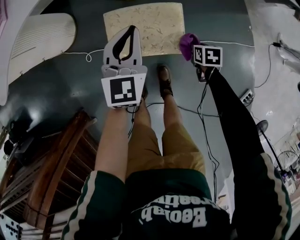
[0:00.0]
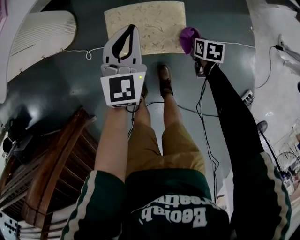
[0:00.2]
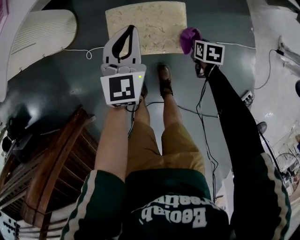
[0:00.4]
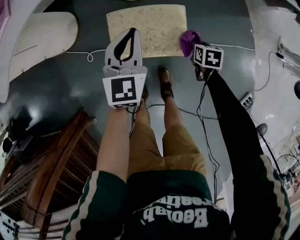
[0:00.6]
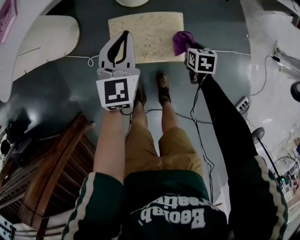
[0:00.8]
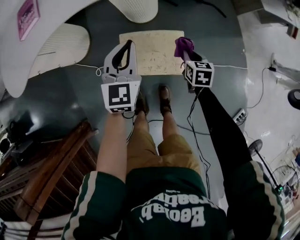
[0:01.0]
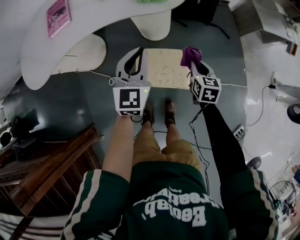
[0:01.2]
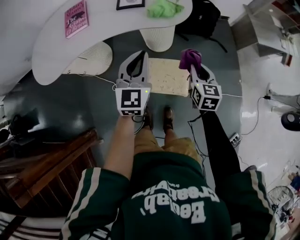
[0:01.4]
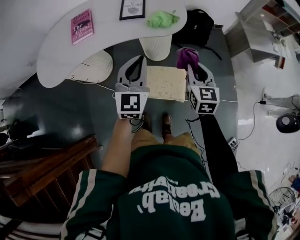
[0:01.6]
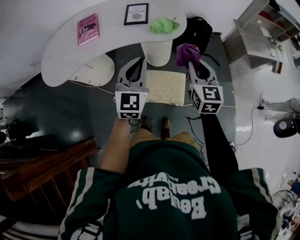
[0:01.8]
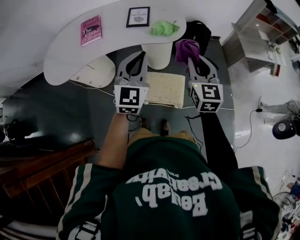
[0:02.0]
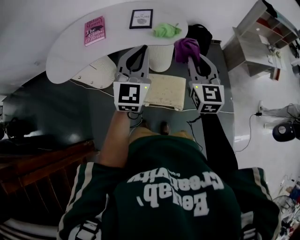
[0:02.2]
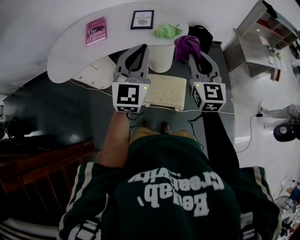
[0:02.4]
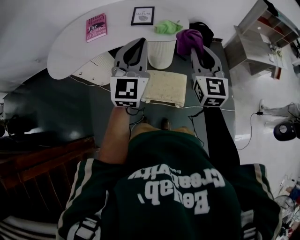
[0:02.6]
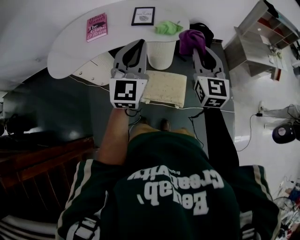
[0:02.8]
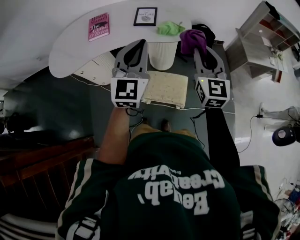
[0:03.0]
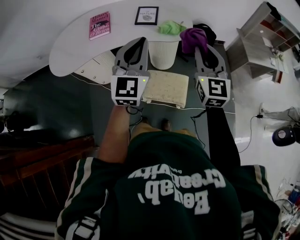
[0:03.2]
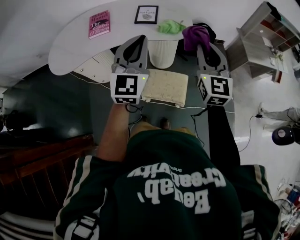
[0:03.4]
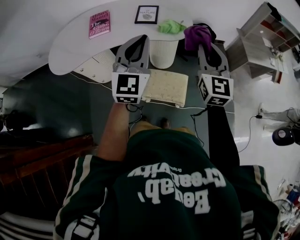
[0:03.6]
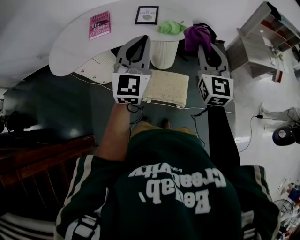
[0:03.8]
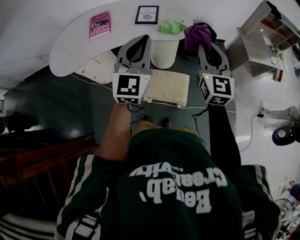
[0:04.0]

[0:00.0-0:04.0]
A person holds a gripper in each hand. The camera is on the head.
0:00.0 to 0:01.4: The left gripper moves upward, approximately 25 cm; the right gripper is displaced upward by some 35 cm, and tilts its fingers approximately 40 degrees upward.
0:01.4 to 0:02.6: The grippers both shift upward by some 20 cm. The right gripper swivels some 30 degrees.
0:02.6 to 0:04.0: The grippers stay close to where they were, moving slightly.

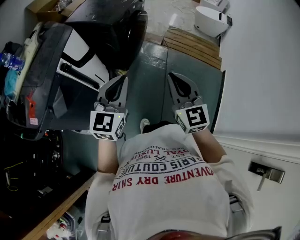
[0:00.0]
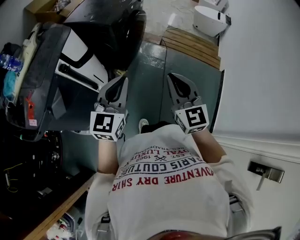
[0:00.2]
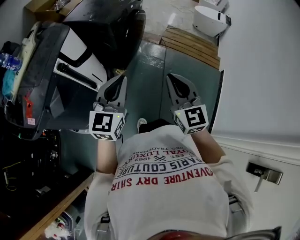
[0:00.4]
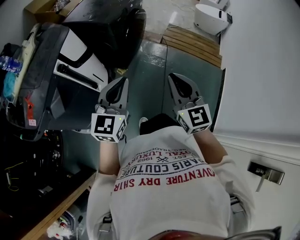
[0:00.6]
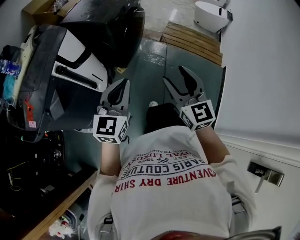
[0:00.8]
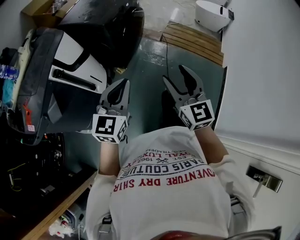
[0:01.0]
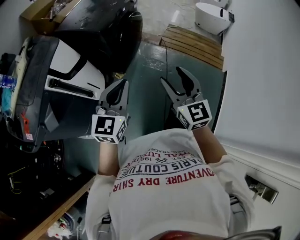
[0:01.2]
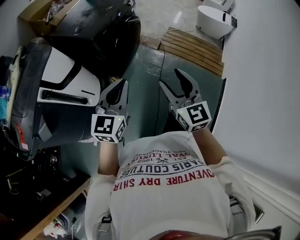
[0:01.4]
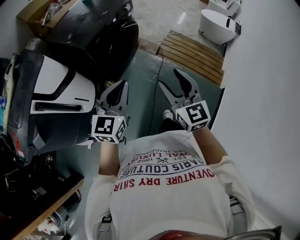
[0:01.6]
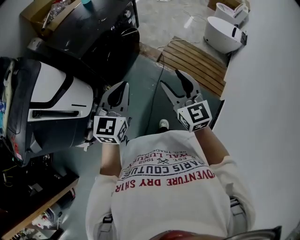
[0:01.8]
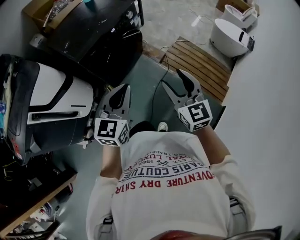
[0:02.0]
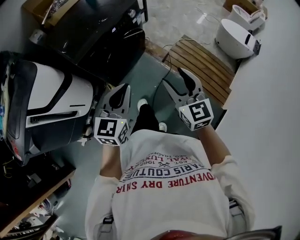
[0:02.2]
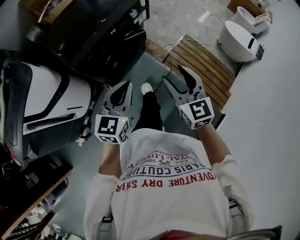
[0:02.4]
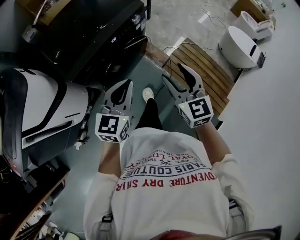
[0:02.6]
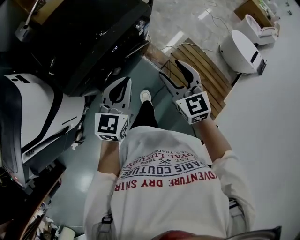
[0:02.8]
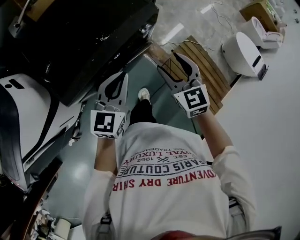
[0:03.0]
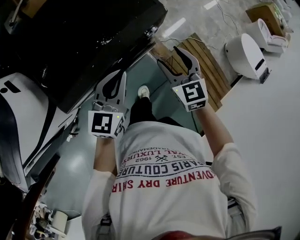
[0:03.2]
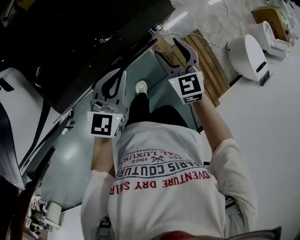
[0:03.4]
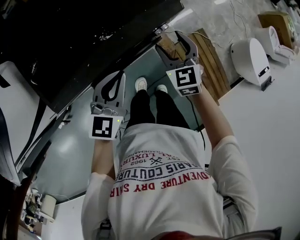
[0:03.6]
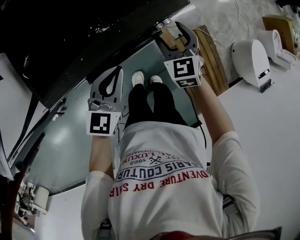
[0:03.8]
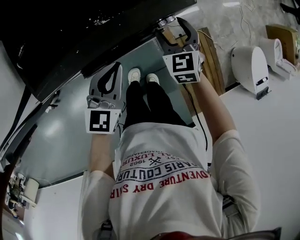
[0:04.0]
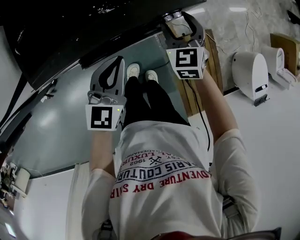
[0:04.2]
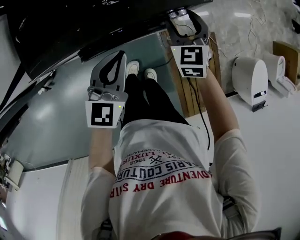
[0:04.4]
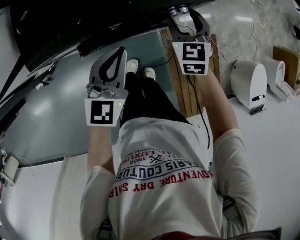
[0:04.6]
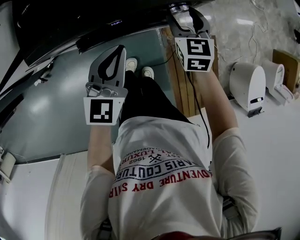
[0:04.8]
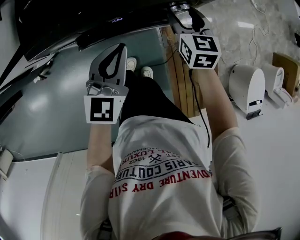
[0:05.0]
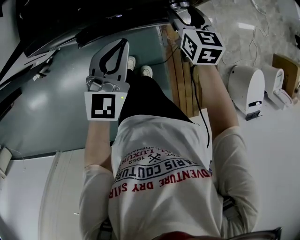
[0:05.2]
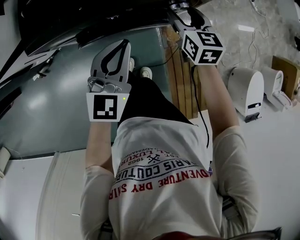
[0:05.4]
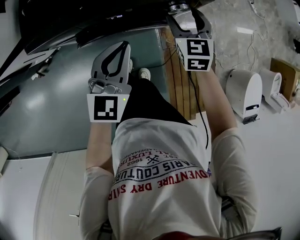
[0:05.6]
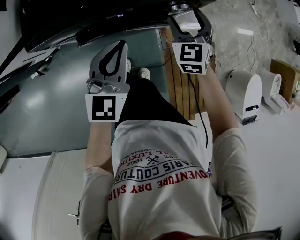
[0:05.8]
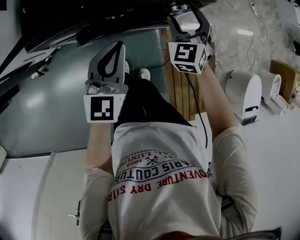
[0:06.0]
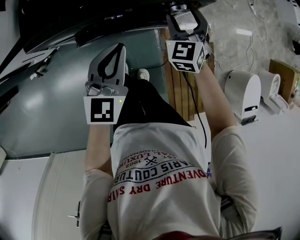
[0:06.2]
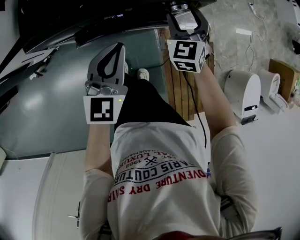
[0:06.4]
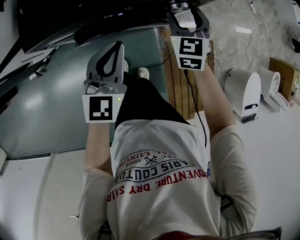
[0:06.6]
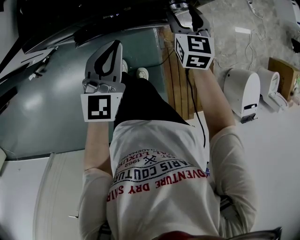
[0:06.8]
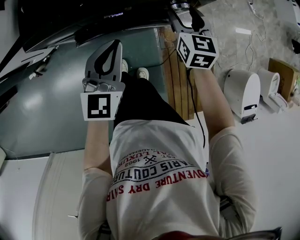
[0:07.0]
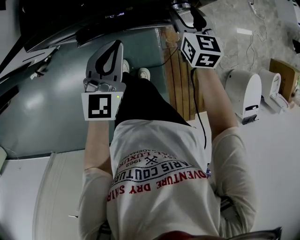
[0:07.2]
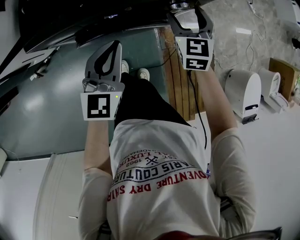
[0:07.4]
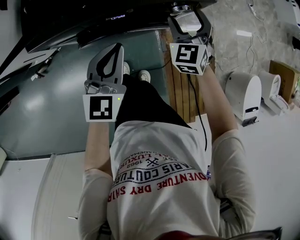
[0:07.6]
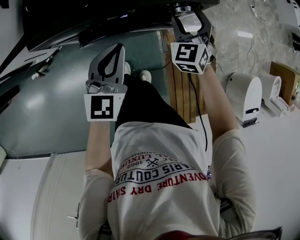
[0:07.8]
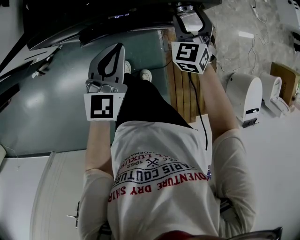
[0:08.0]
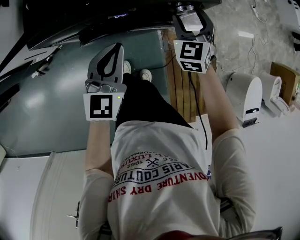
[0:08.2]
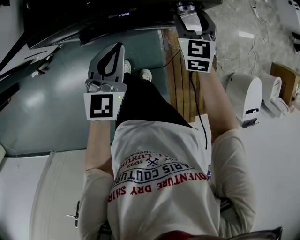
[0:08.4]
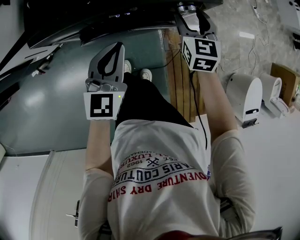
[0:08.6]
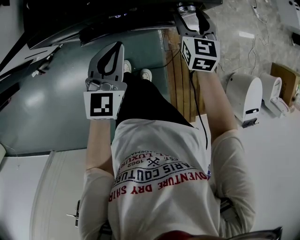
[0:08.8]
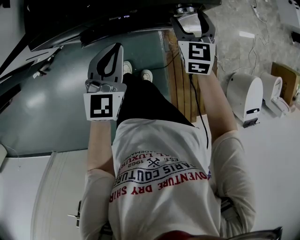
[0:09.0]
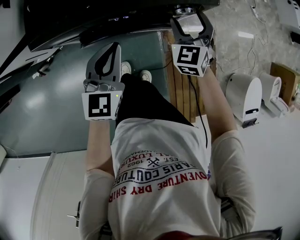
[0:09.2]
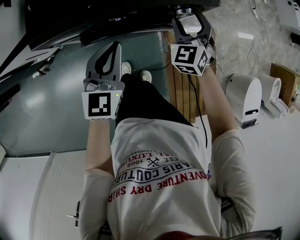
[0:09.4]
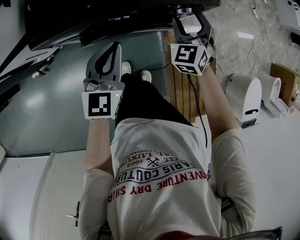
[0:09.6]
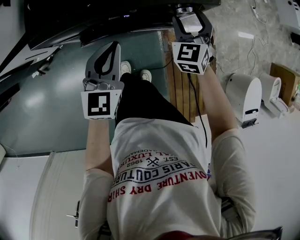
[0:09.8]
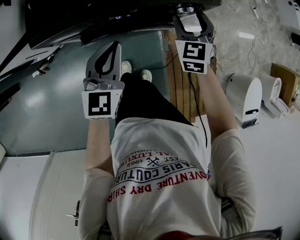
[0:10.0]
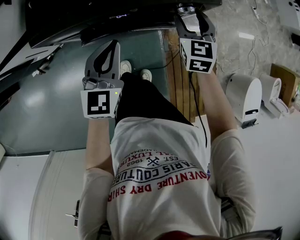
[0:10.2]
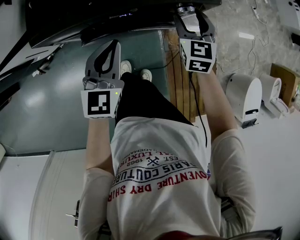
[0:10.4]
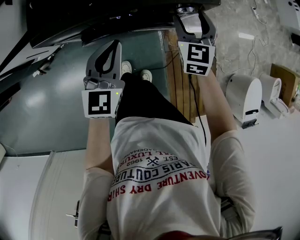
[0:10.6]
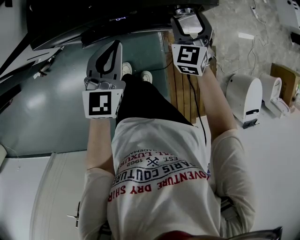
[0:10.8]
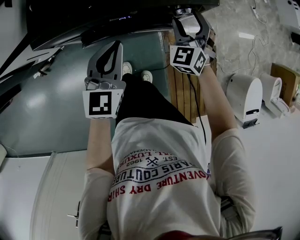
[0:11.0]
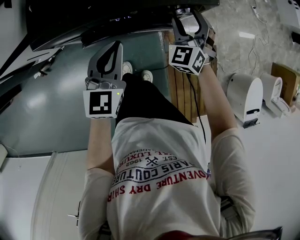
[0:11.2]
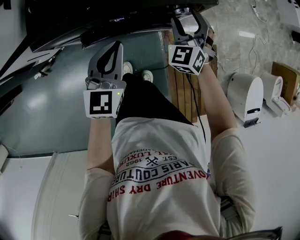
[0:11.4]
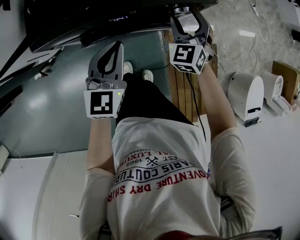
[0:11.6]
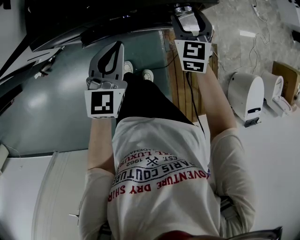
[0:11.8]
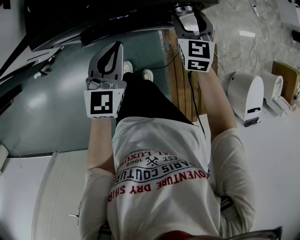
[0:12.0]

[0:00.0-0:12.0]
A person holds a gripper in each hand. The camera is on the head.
0:00.0 to 0:01.6: Both grippers travel together forward and to the right, approximately 30 cm. The right gripper opens up.
0:01.6 to 0:03.0: The pair of grippers is taken forward, approximately 50 cm. The right gripper changes its angle by about 30 degrees.
0:03.0 to 0:04.4: The right gripper travels forward and downward by some 25 cm, and swivels about 20 degrees. The left gripper travels downward by about 10 cm, and turns by approximately 30 degrees.

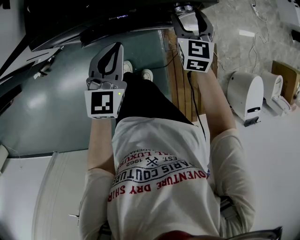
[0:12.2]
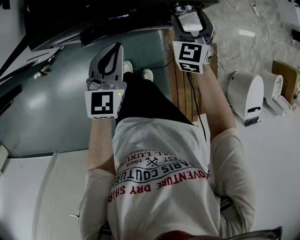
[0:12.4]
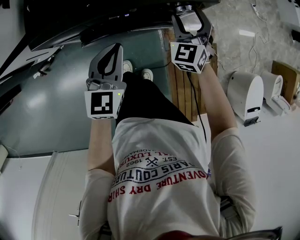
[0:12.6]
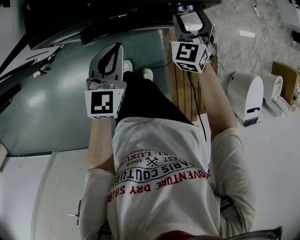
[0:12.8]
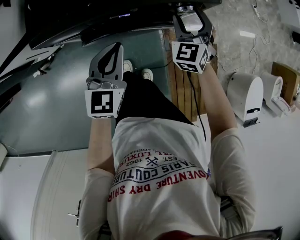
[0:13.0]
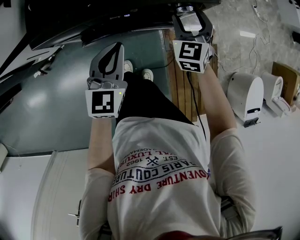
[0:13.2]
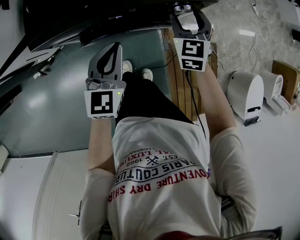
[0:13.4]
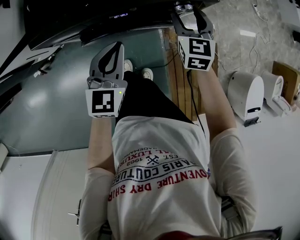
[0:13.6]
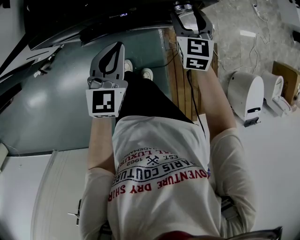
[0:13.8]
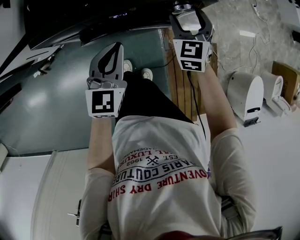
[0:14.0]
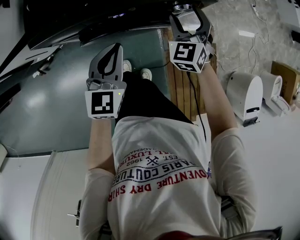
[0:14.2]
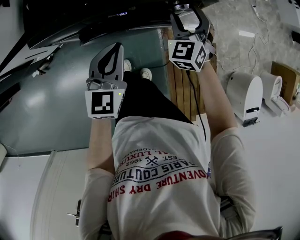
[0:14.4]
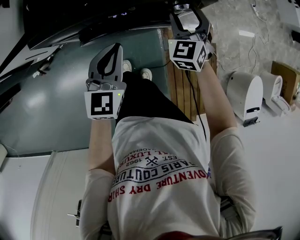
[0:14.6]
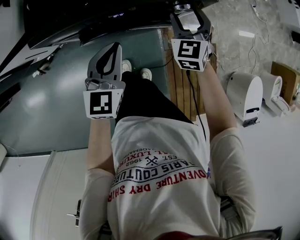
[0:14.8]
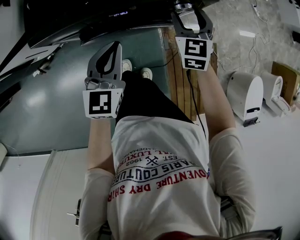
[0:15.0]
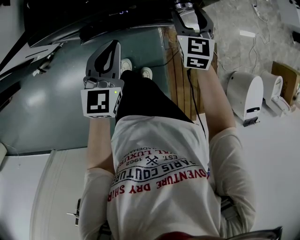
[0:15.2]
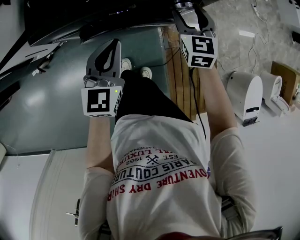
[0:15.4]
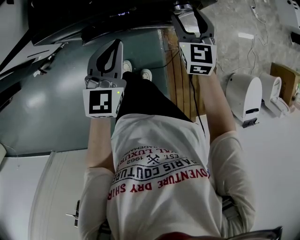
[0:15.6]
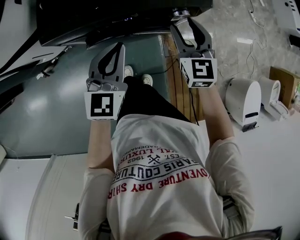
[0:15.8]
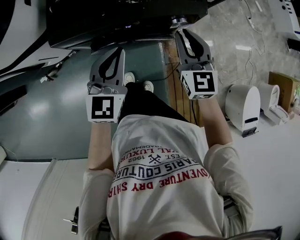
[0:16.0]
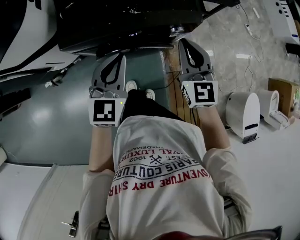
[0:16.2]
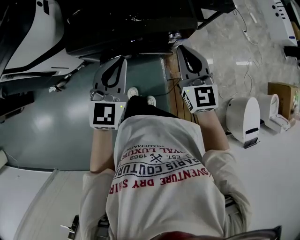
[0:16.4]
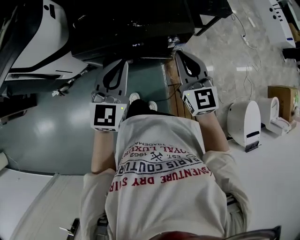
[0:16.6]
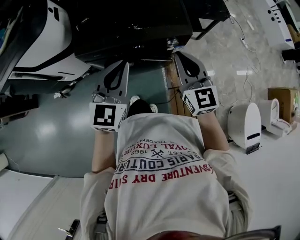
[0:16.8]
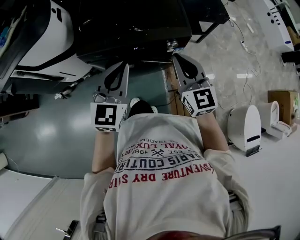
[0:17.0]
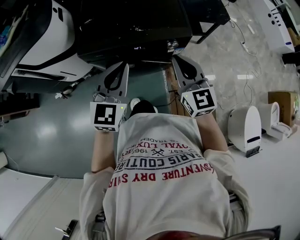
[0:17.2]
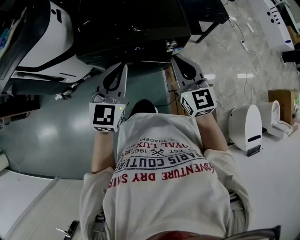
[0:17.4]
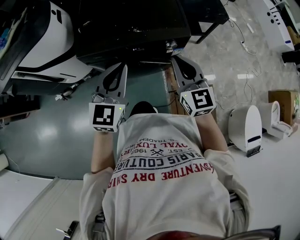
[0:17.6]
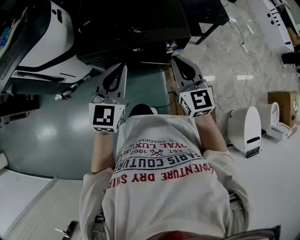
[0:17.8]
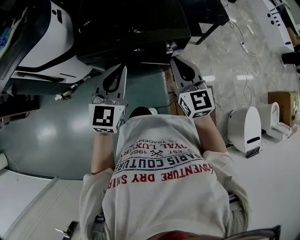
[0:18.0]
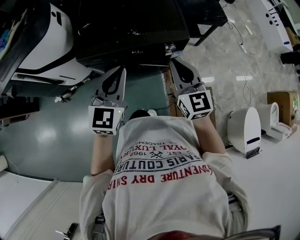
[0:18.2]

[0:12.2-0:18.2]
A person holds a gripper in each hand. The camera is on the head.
0:15.2 to 0:16.6: The right gripper travels upward and backward by some 25 cm, changes its angle by some 20 degrees, and closes its fingers. Meanwhile the left gripper travels upward by about 20 cm.
0:16.6 to 0:18.2: There are only small adjustments of the grippers.

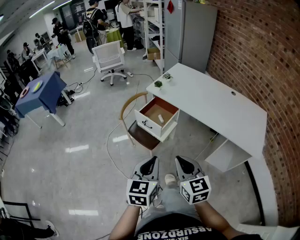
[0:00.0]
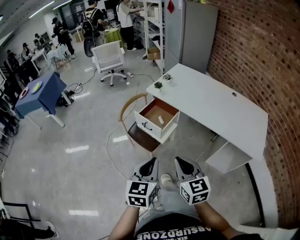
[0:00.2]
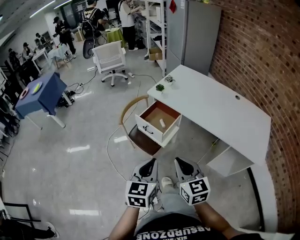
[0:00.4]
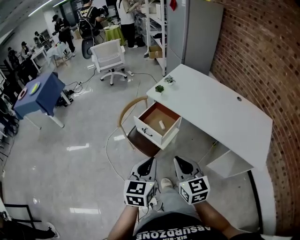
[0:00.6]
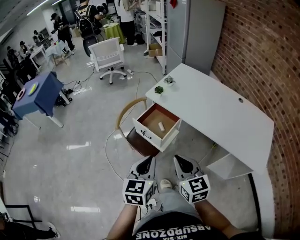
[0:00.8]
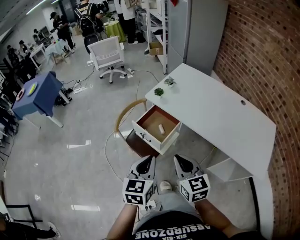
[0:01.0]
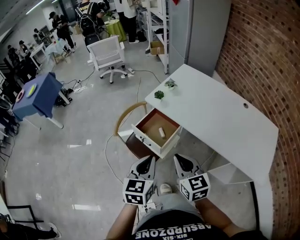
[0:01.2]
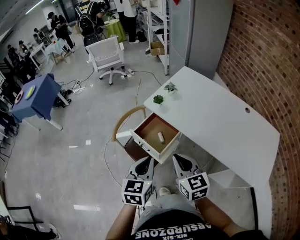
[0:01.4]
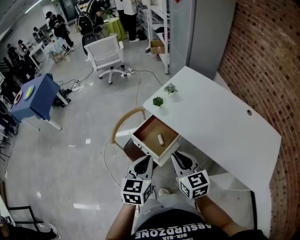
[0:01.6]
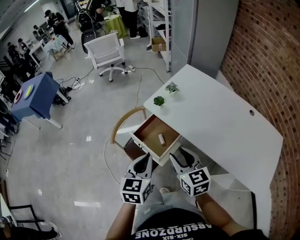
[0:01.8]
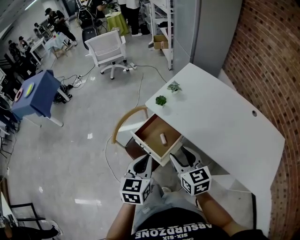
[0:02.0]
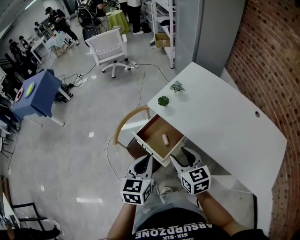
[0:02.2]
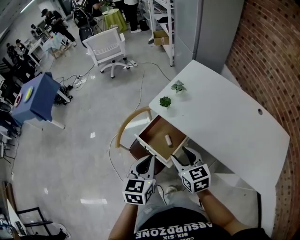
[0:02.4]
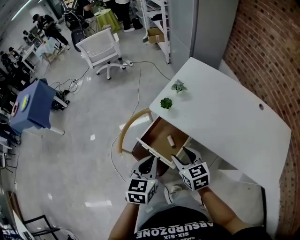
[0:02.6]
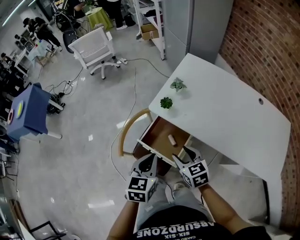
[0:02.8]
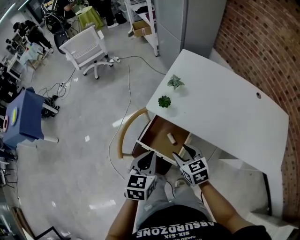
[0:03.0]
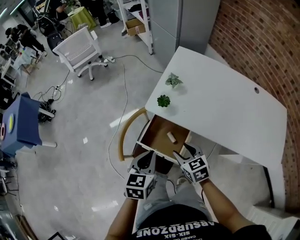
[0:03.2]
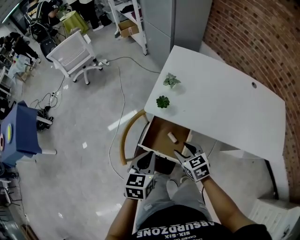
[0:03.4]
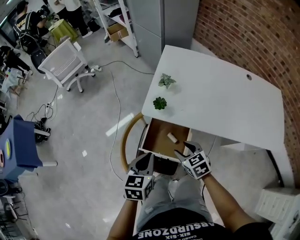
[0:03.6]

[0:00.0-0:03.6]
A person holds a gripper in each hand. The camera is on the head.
0:00.0 to 0:01.8: Both grippers travel together forward, some 35 cm. The right gripper opens.
0:01.8 to 0:03.6: The left gripper shifts approximately 25 cm forward, to the left and downward, and rotates some 30 degrees. The right gripper heads downward, forward and to the left, covering some 25 cm, and changes its angle by approximately 30 degrees.
